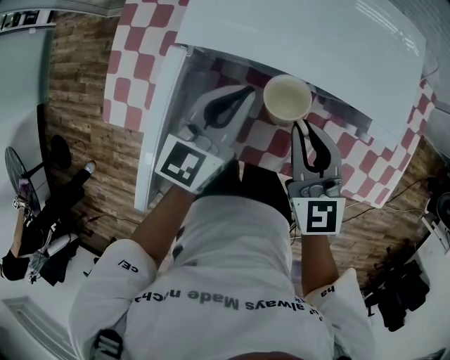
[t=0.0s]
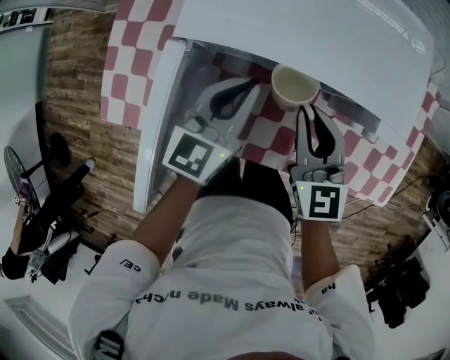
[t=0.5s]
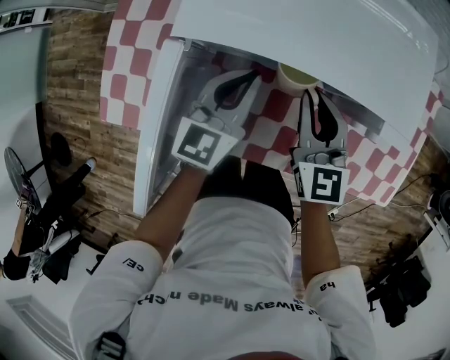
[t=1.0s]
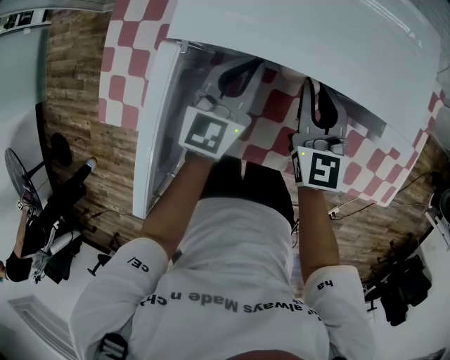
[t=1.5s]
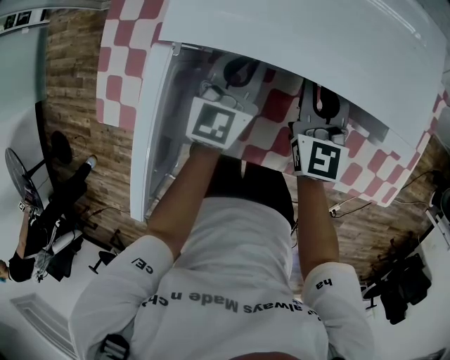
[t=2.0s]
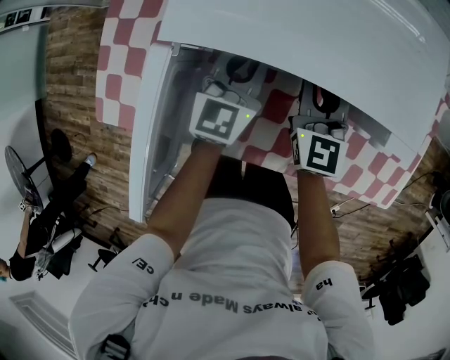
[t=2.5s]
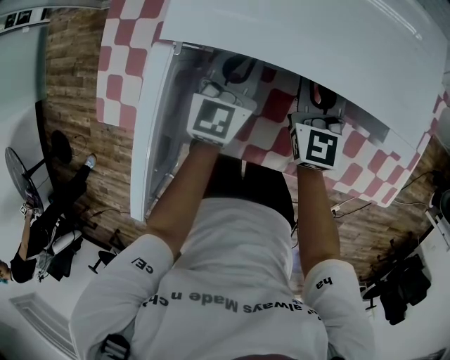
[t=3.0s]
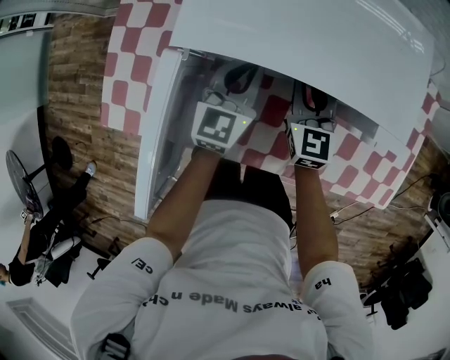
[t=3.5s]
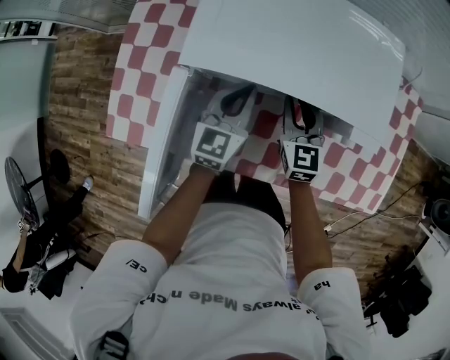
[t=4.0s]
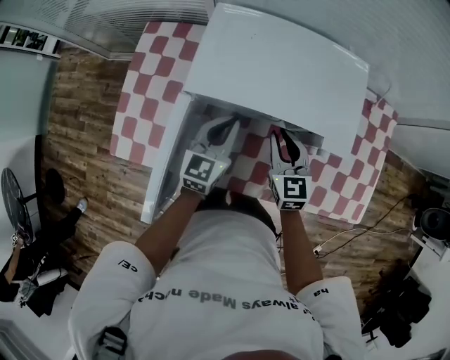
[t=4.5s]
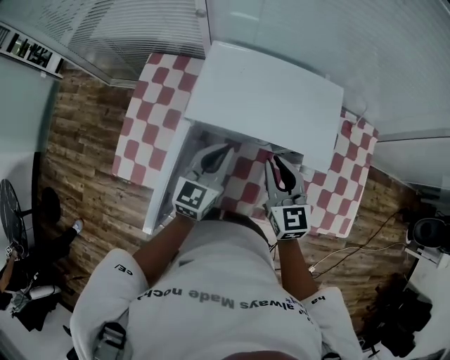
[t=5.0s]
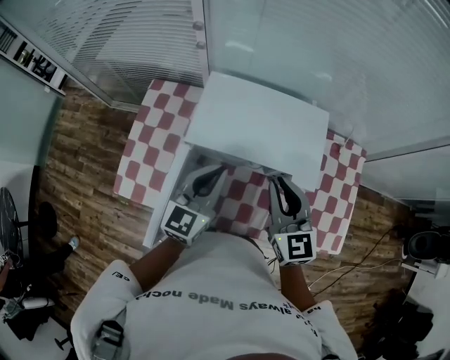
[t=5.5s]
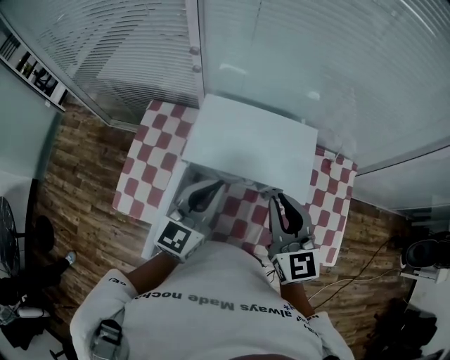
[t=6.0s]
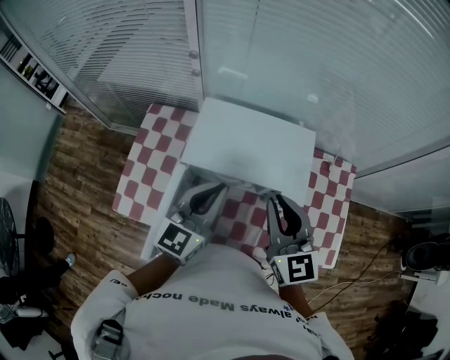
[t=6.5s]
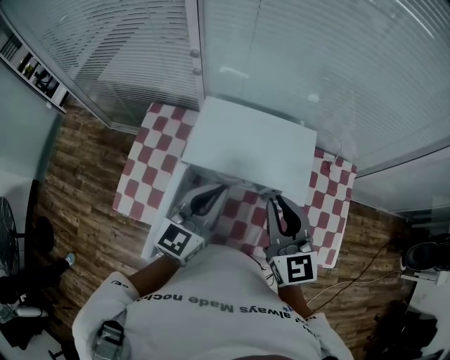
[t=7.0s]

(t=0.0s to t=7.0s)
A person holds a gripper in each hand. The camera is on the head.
t=0.0s - t=2.0s: The left gripper goes roughly 10 cm downward and forward, while the right gripper travels forward and downward by some 15 cm.
t=2.0s - t=3.5s: The grippers move only a little.
t=3.5s - t=5.0s: Both grippers travel together upward and backward, approximately 20 cm.
t=5.0s - t=7.0s: The two grippers go some 15 cm upward.

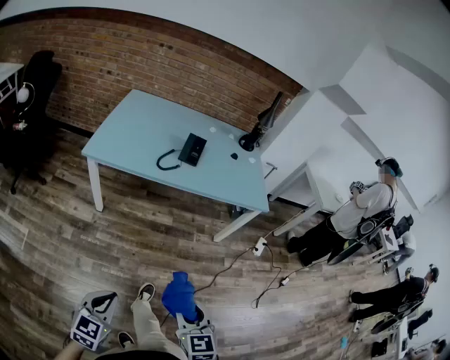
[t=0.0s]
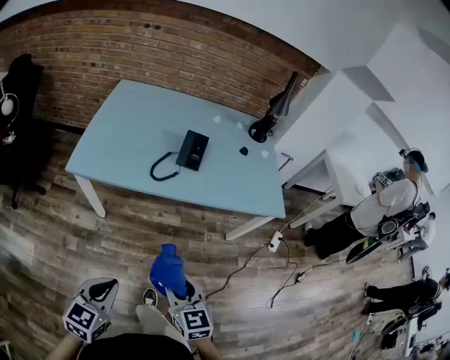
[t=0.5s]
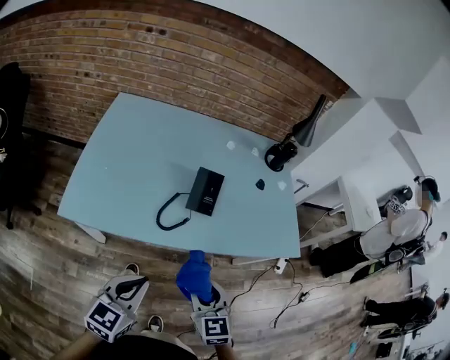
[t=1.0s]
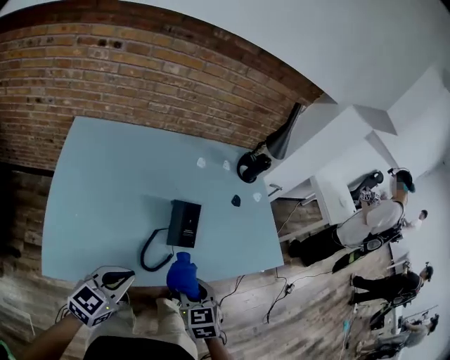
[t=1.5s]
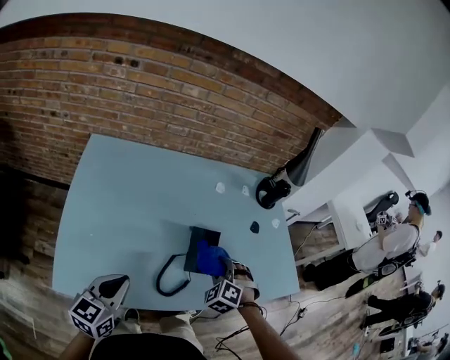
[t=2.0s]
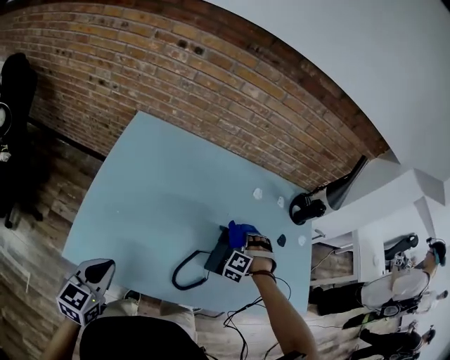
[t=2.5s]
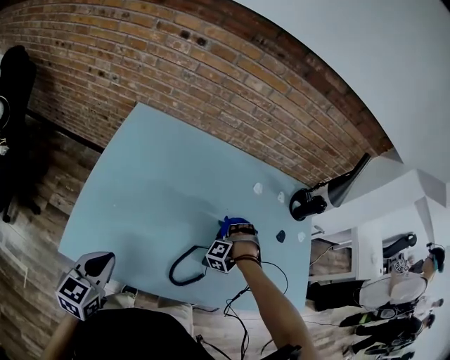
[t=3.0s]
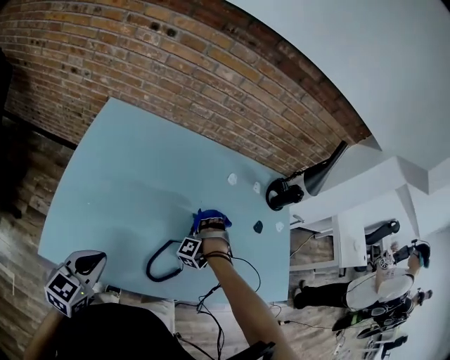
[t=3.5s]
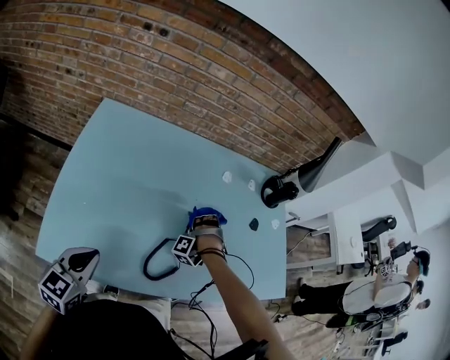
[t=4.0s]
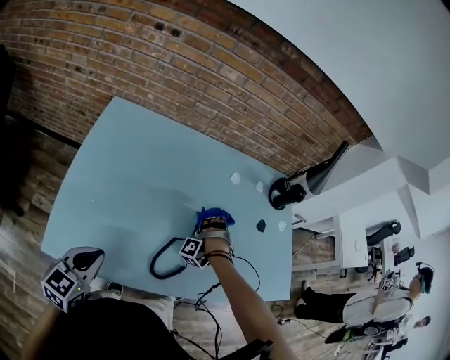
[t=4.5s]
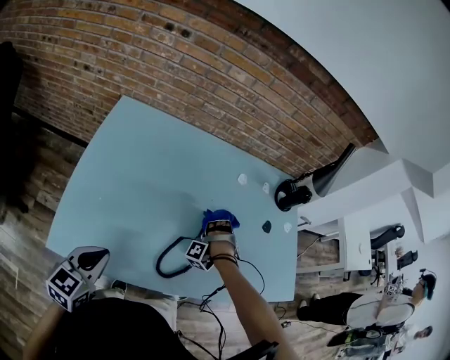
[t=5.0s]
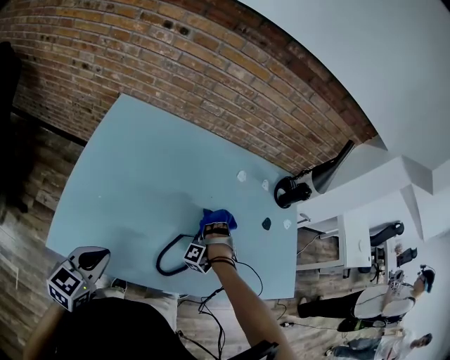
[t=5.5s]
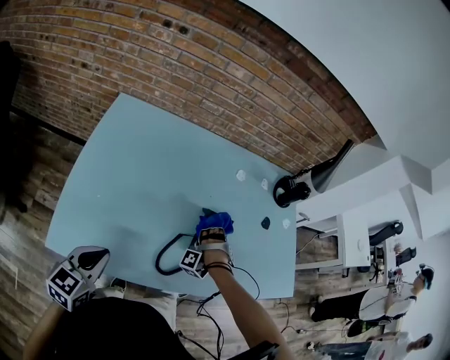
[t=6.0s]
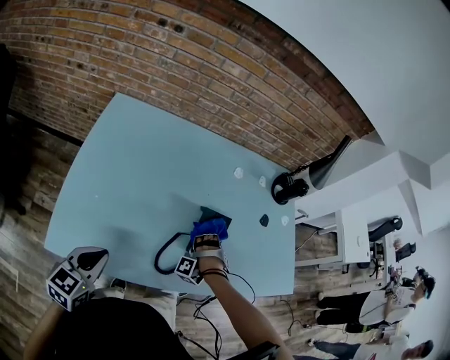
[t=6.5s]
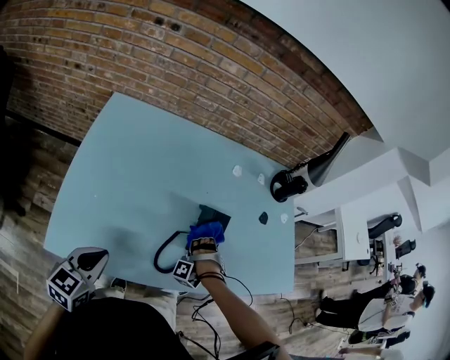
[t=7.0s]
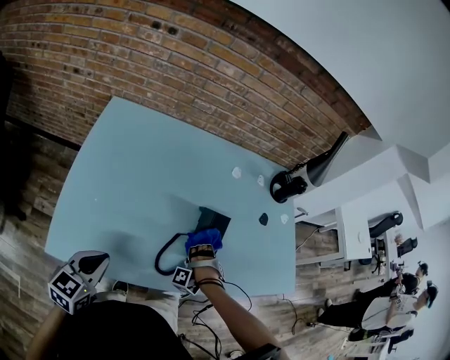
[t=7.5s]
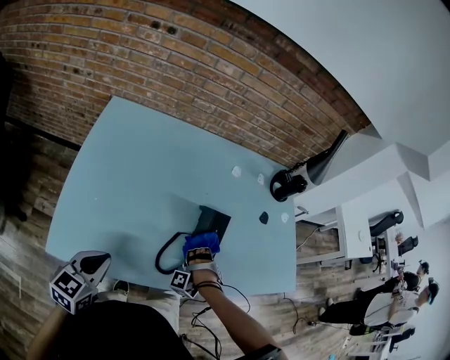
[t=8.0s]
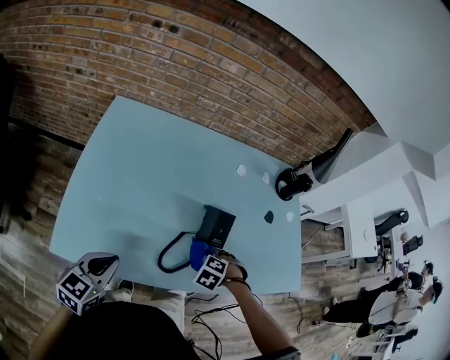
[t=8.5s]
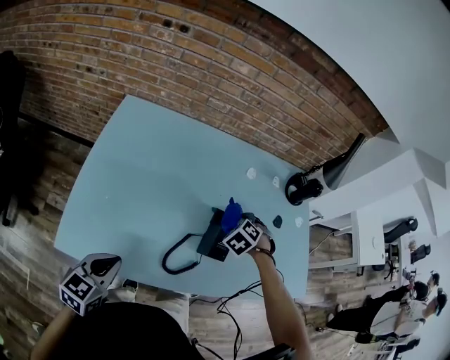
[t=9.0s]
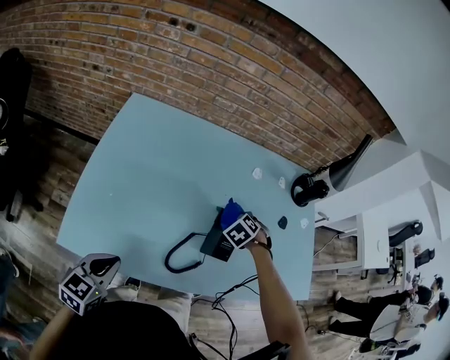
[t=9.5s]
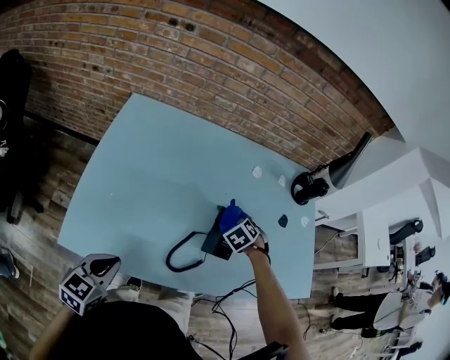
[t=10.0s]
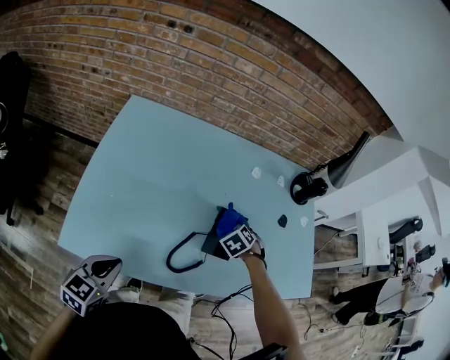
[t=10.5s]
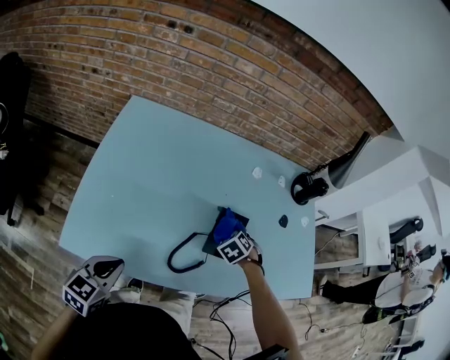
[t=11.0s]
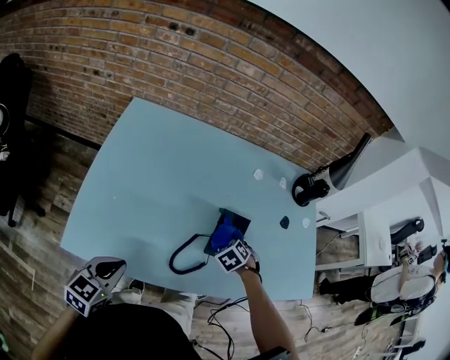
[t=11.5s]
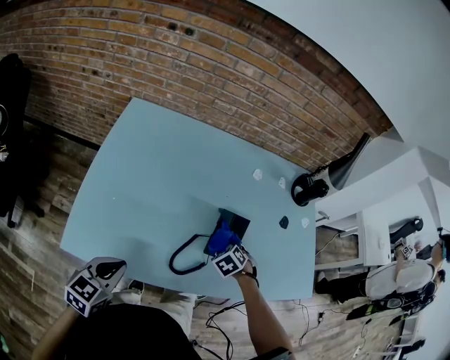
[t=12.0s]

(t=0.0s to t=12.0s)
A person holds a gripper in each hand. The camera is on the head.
t=0.0s - t=2.0s: The left gripper changes place by approximately 70 cm.

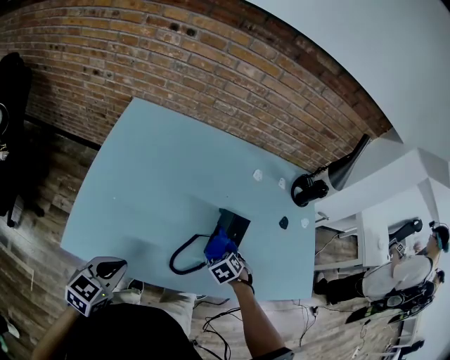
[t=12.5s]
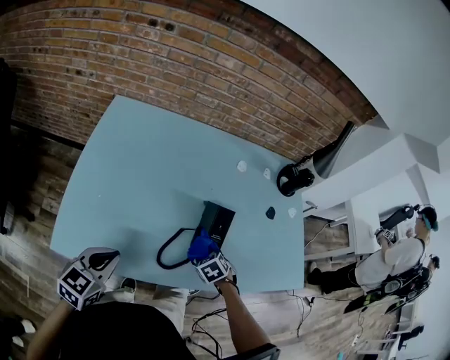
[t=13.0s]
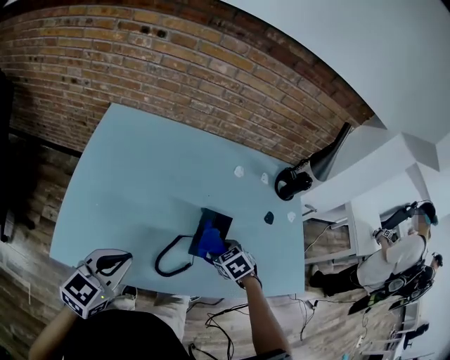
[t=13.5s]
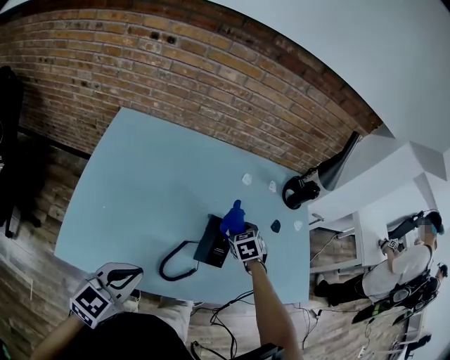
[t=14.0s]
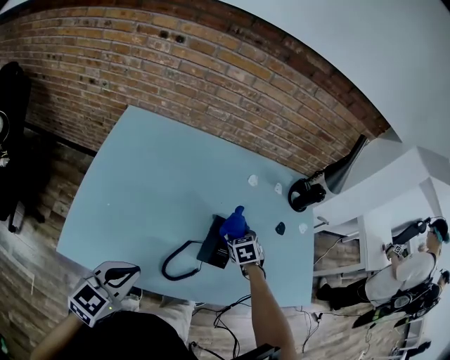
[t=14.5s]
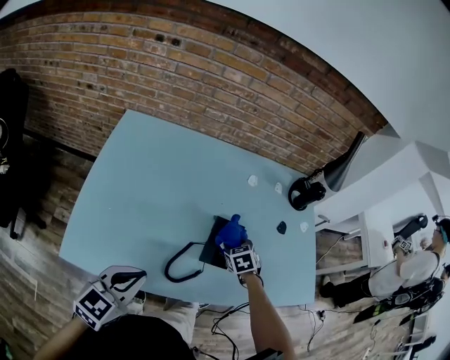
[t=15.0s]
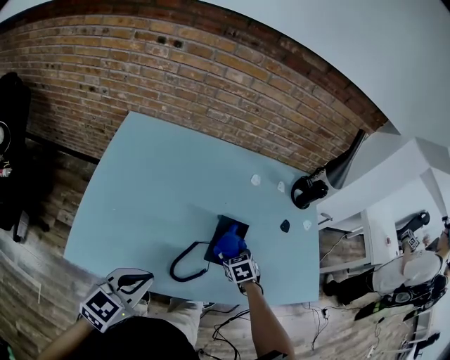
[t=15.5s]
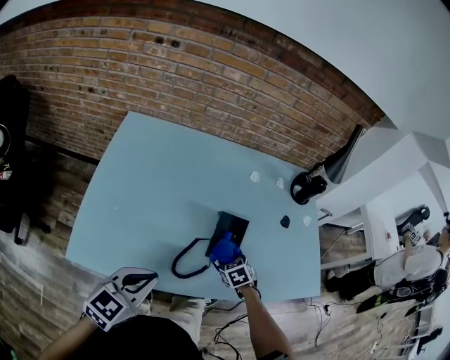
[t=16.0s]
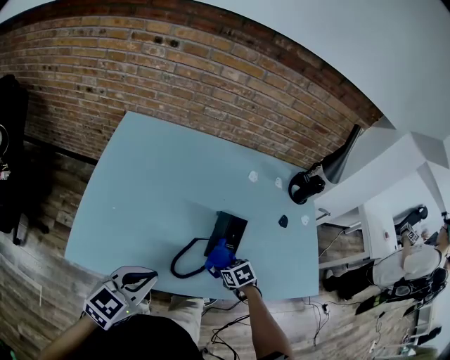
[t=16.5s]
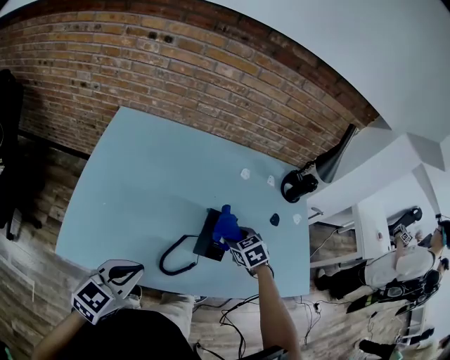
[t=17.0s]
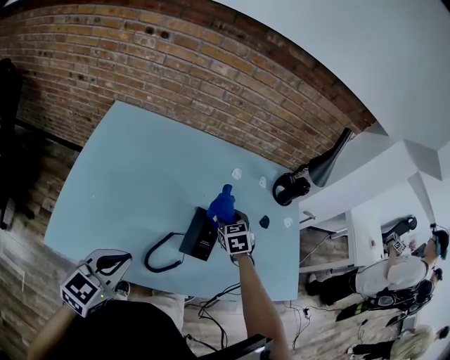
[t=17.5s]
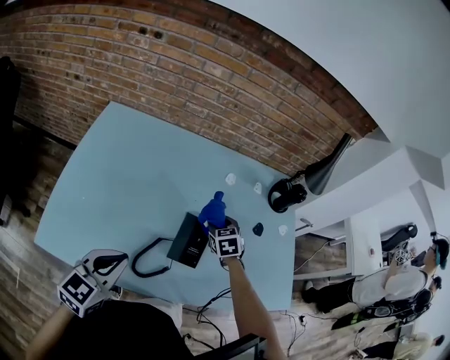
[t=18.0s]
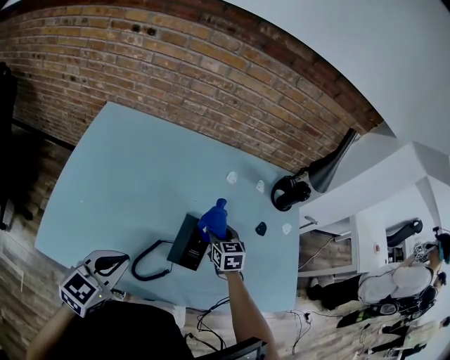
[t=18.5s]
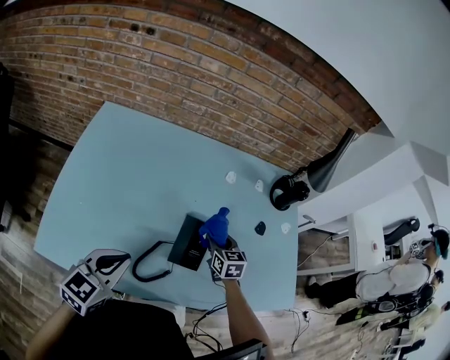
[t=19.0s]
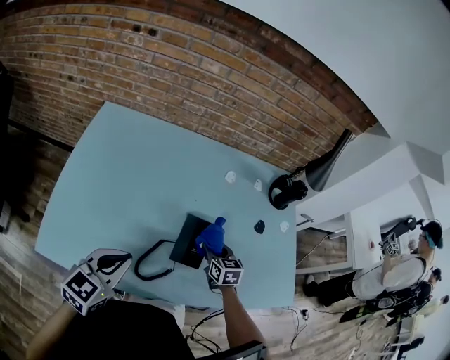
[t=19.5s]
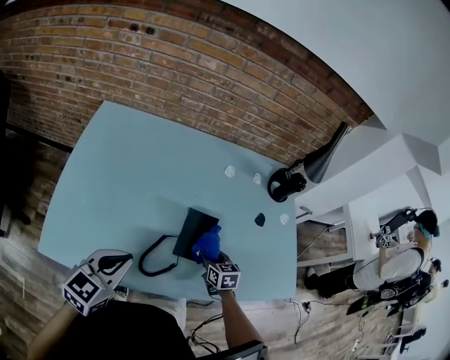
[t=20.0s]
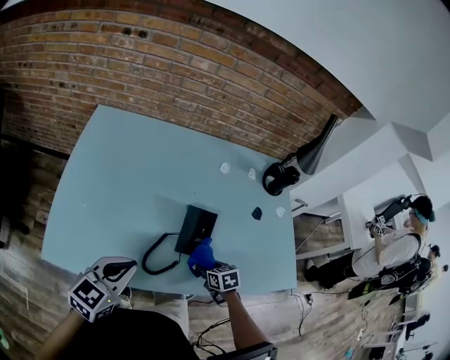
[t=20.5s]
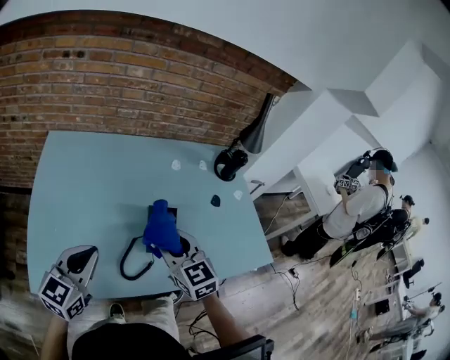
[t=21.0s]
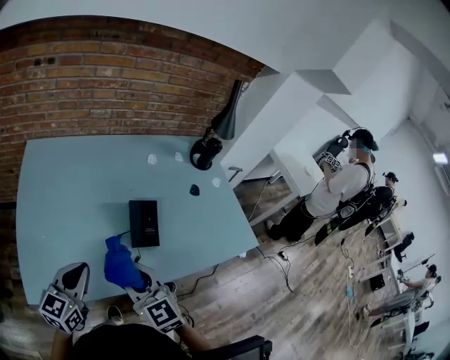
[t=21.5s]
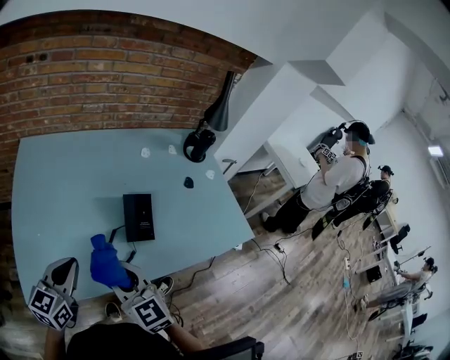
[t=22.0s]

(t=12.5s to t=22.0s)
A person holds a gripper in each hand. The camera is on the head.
t=12.5s - t=14.5s: The left gripper goes some 5 cm upward.
t=16.5s - t=18.0s: The left gripper changes place by some 5 cm.
t=20.0s - t=22.0s: The left gripper changes place by approximately 5 cm.
